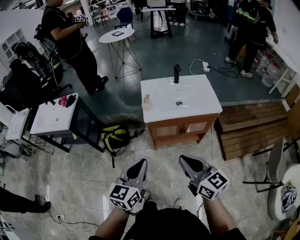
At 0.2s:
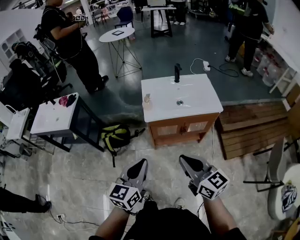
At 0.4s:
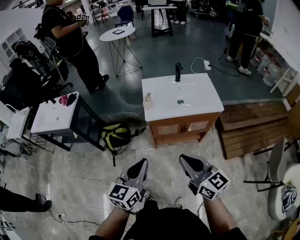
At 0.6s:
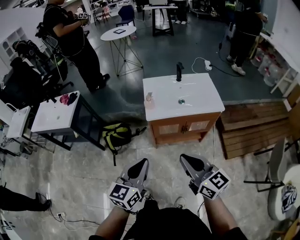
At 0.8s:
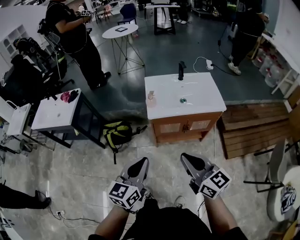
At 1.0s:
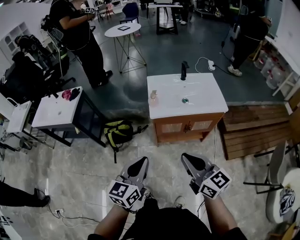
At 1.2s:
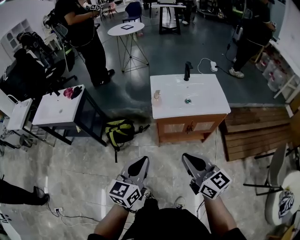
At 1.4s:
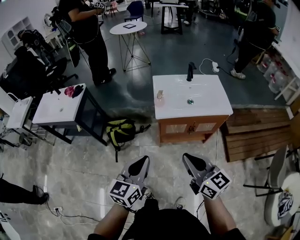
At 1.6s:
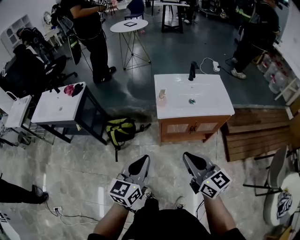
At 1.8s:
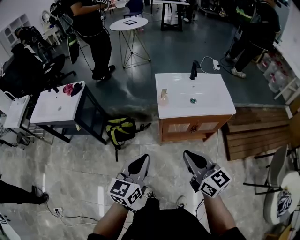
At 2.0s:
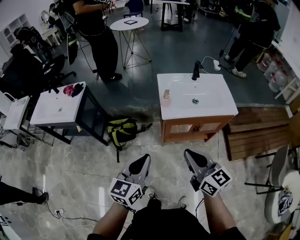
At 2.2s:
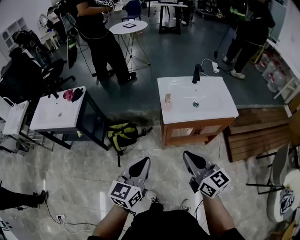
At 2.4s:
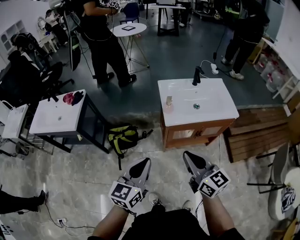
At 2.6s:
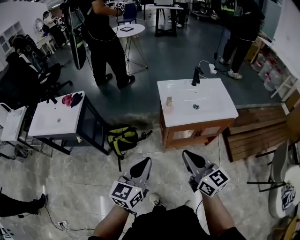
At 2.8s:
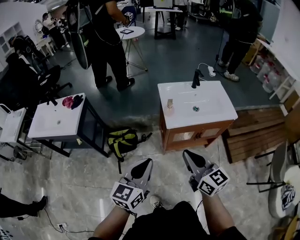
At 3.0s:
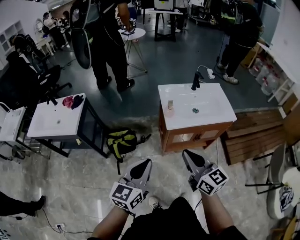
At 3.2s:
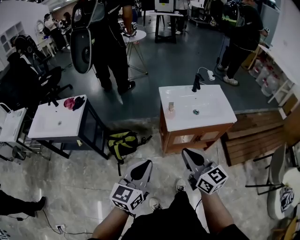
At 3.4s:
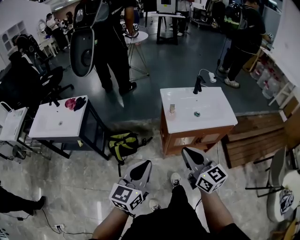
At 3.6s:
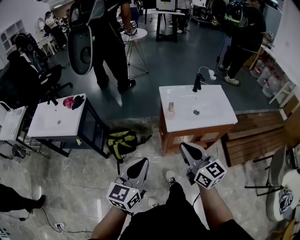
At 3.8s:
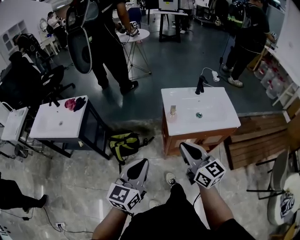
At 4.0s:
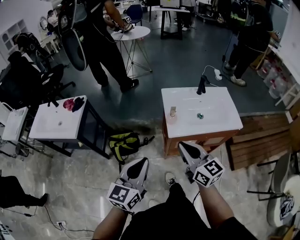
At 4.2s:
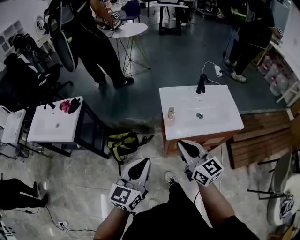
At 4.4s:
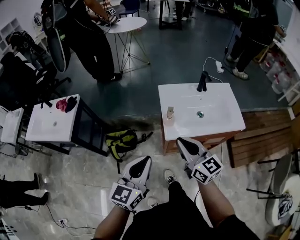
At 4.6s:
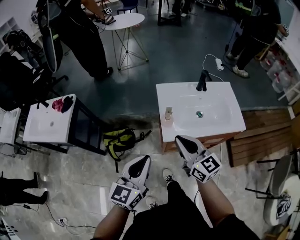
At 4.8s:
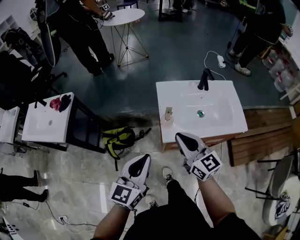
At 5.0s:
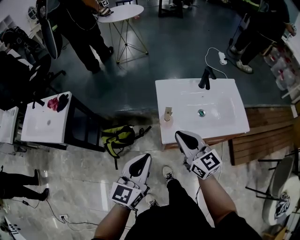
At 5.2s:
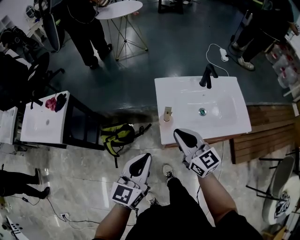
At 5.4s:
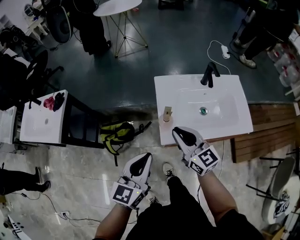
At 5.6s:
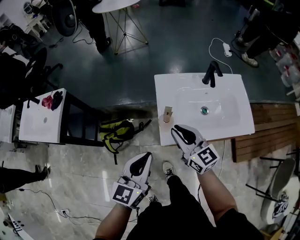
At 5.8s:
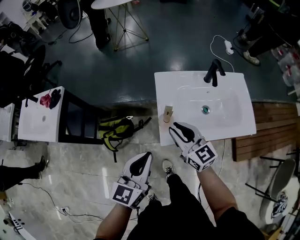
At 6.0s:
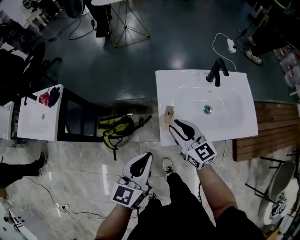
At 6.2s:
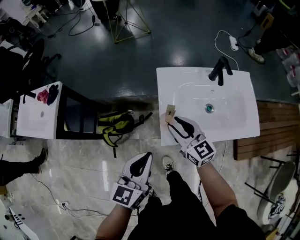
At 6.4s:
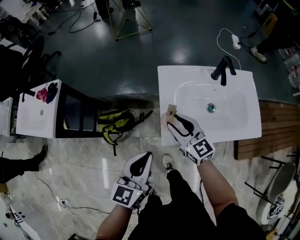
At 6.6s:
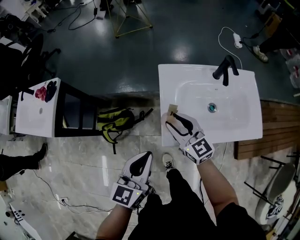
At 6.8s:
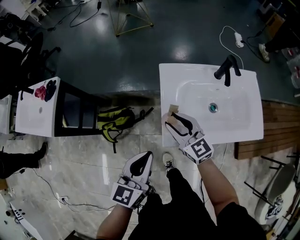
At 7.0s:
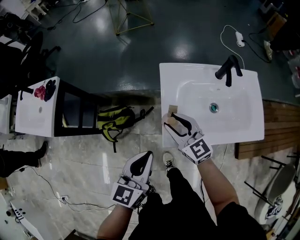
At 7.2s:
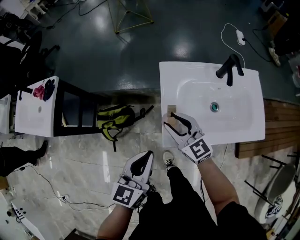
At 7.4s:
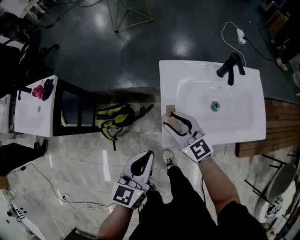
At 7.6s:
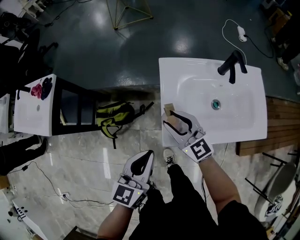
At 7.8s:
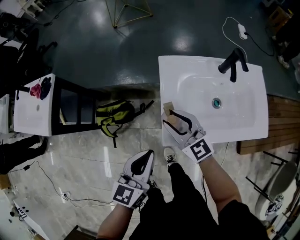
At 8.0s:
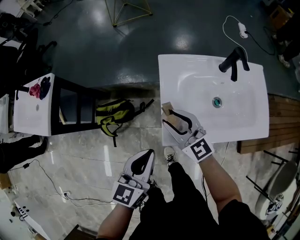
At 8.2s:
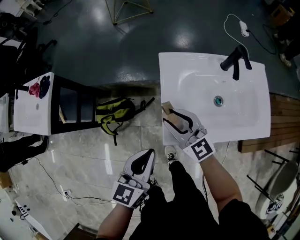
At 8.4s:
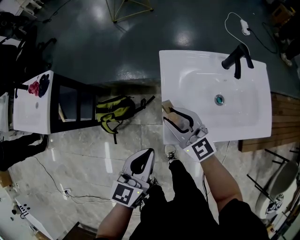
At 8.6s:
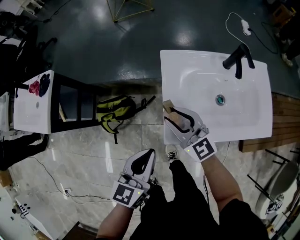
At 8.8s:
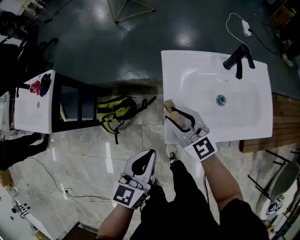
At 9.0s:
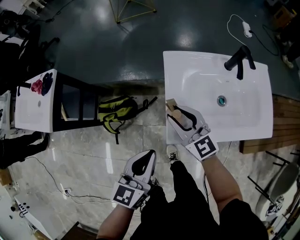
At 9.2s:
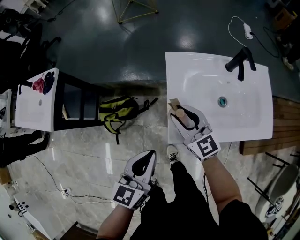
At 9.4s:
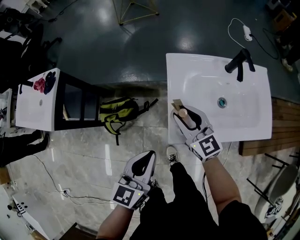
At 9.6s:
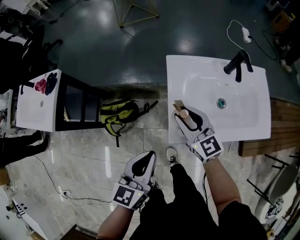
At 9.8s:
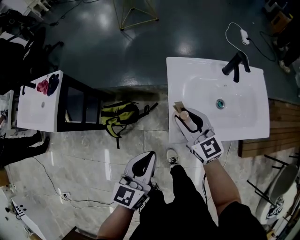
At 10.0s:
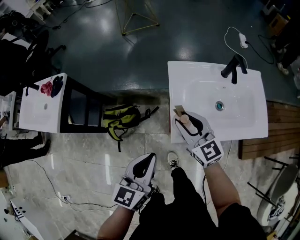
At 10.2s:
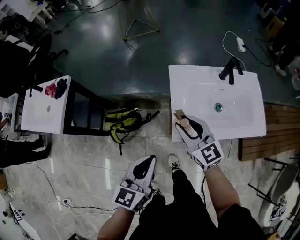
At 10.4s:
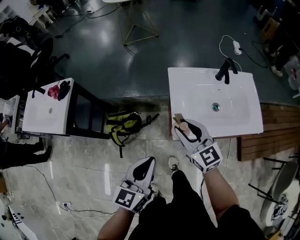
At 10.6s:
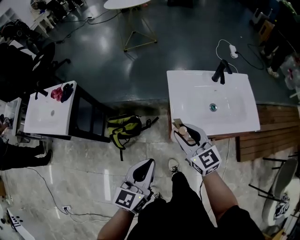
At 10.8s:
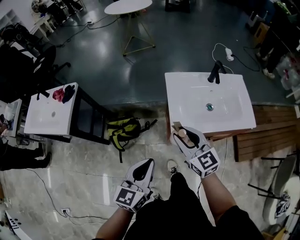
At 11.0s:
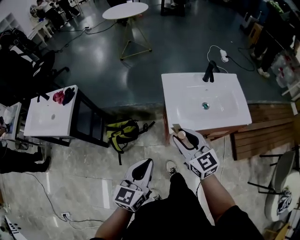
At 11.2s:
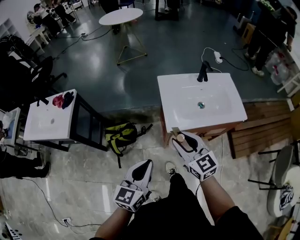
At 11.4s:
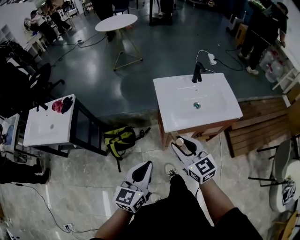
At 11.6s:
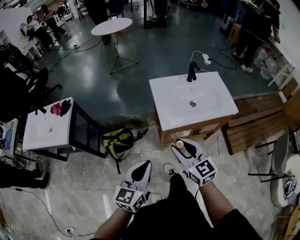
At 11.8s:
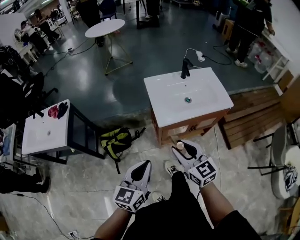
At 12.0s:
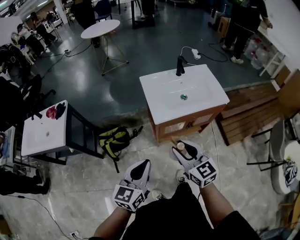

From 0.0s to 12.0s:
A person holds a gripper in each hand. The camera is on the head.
From 0.0s to 1.6s: Both grippers move to the left, approximately 5 cm.
From 1.6s to 3.0s: The right gripper heads to the left and forward, covering roughly 10 cm. The left gripper heads to the left, covering roughly 10 cm.
From 3.0s to 4.4s: Both grippers travel together forward, roughly 15 cm.
From 4.4s to 6.0s: The two grippers go about 15 cm forward and downward. The right gripper opens up.
From 6.0s to 7.6s: The right gripper shifts by roughly 5 cm, while the left gripper changes place by some 5 cm.
From 7.6s to 9.0s: The grippers move only a little.
From 9.0s to 10.4s: The two grippers go roughly 10 cm upward and backward.
From 10.4s to 12.0s: The left gripper travels backward by approximately 15 cm. The right gripper heads backward, covering some 25 cm.

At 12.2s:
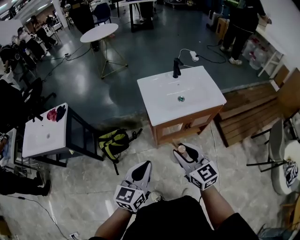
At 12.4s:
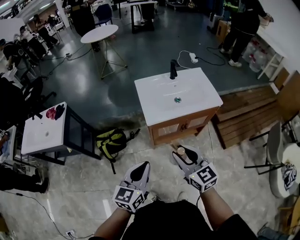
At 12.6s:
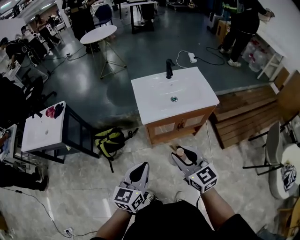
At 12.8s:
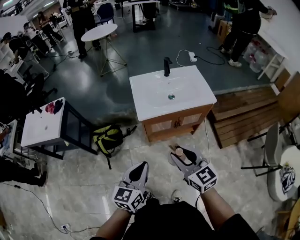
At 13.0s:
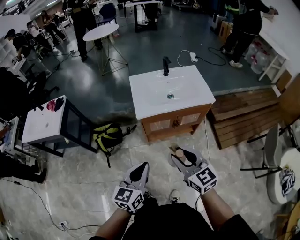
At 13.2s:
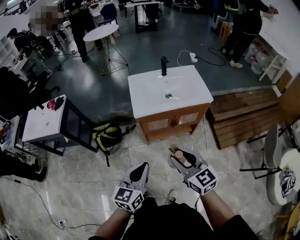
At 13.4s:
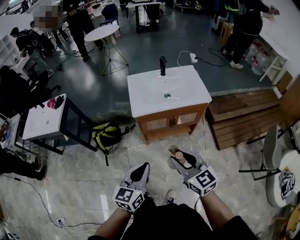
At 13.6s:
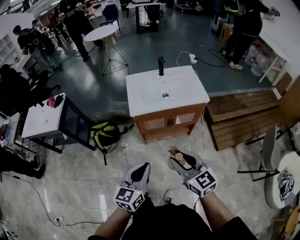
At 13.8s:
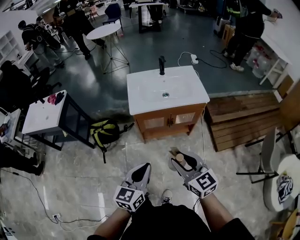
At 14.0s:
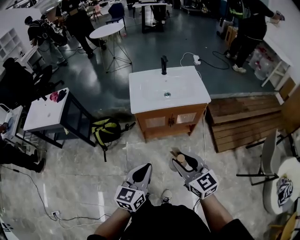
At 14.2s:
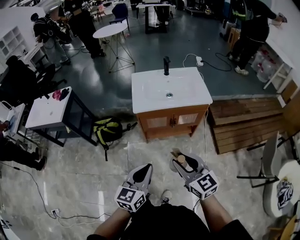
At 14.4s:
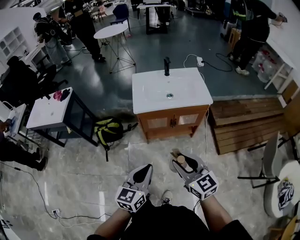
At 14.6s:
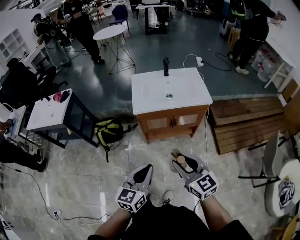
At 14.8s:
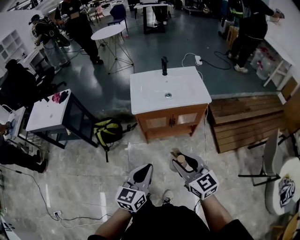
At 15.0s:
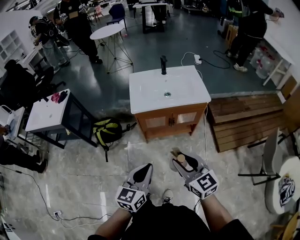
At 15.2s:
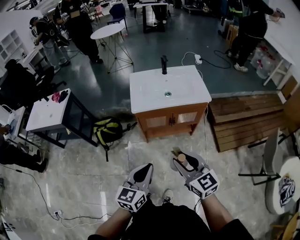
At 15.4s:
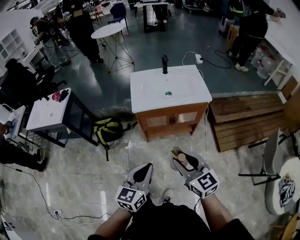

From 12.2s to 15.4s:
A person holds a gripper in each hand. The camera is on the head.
From 12.2s to 13.8s: The two grippers go about 20 cm to the right and backward.
From 13.8s to 15.4s: There are only small adjustments of the grippers.

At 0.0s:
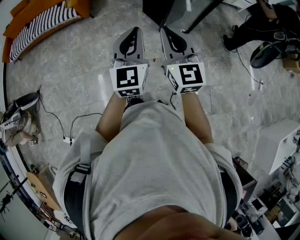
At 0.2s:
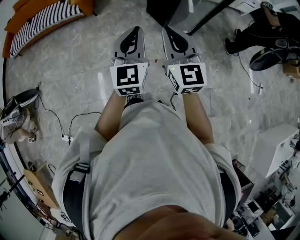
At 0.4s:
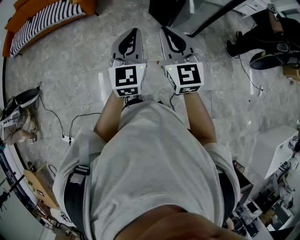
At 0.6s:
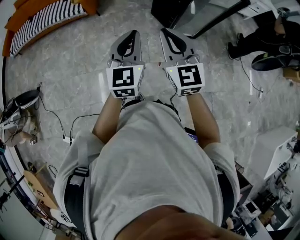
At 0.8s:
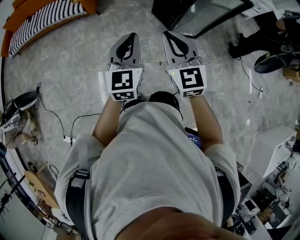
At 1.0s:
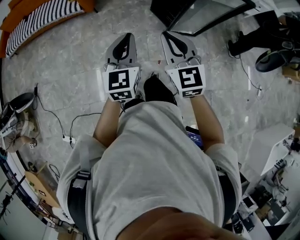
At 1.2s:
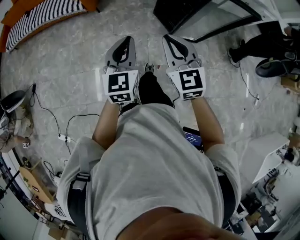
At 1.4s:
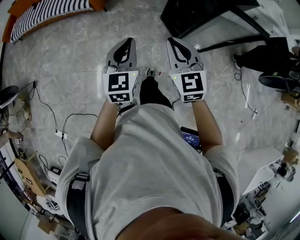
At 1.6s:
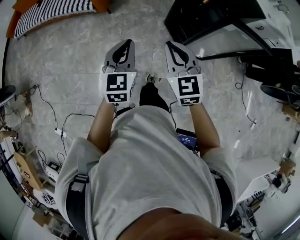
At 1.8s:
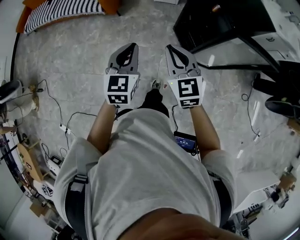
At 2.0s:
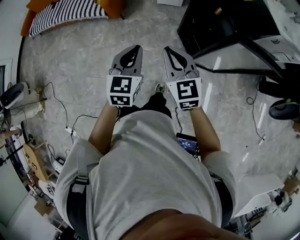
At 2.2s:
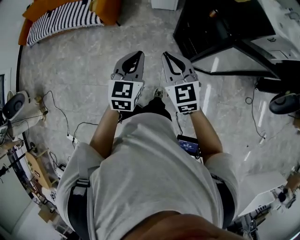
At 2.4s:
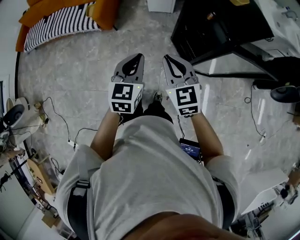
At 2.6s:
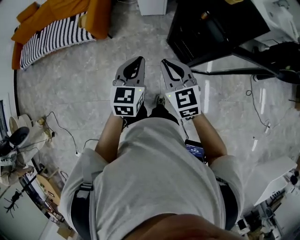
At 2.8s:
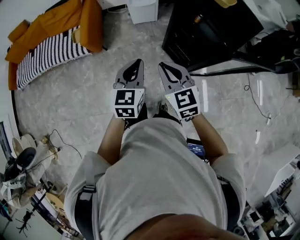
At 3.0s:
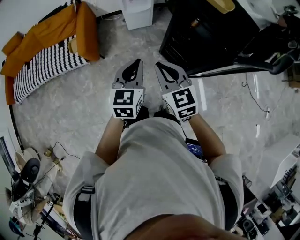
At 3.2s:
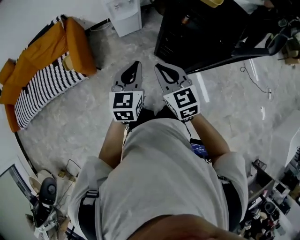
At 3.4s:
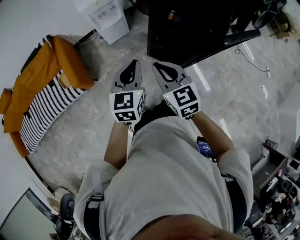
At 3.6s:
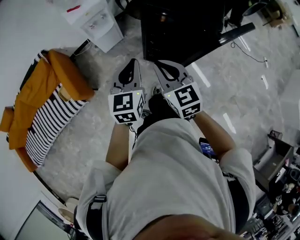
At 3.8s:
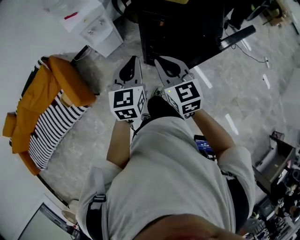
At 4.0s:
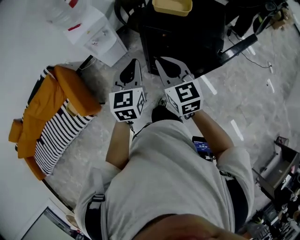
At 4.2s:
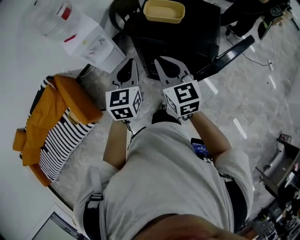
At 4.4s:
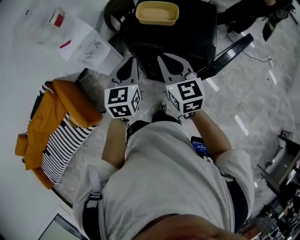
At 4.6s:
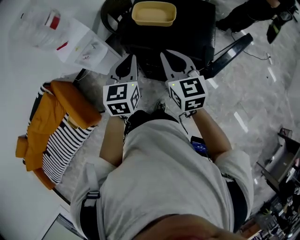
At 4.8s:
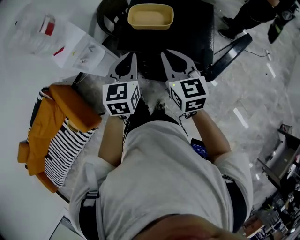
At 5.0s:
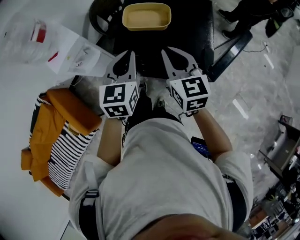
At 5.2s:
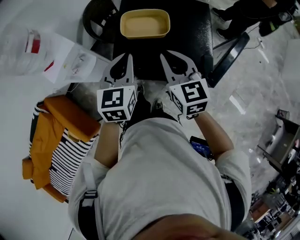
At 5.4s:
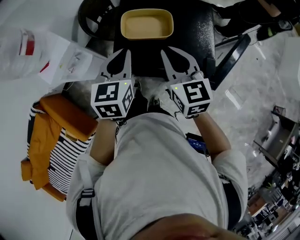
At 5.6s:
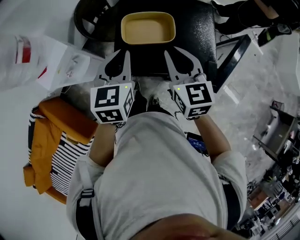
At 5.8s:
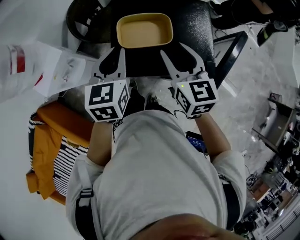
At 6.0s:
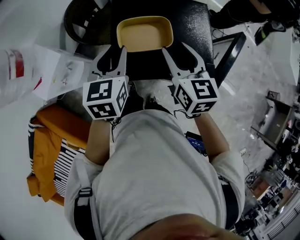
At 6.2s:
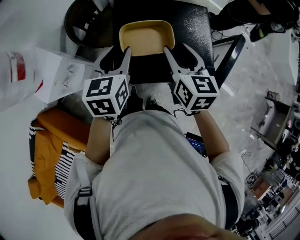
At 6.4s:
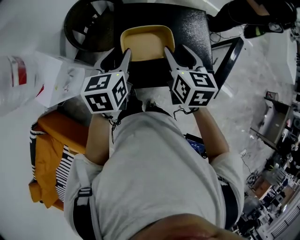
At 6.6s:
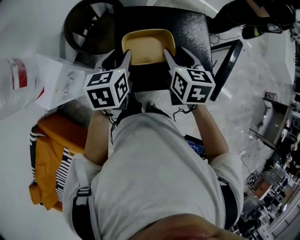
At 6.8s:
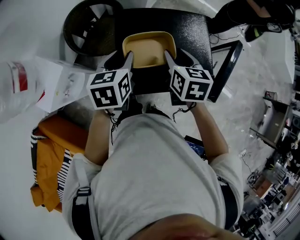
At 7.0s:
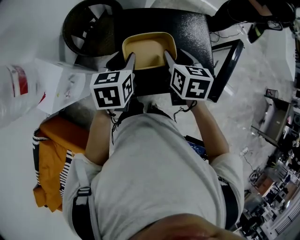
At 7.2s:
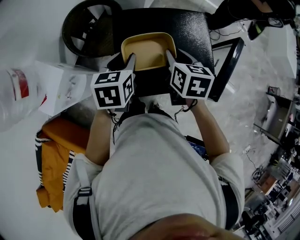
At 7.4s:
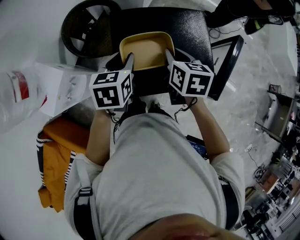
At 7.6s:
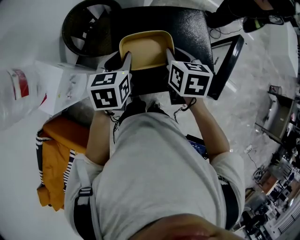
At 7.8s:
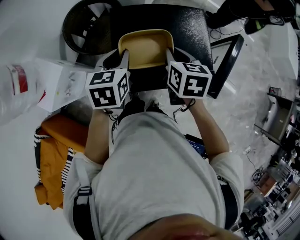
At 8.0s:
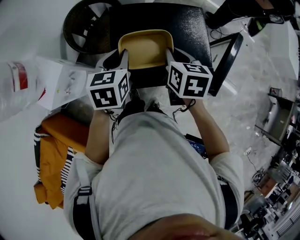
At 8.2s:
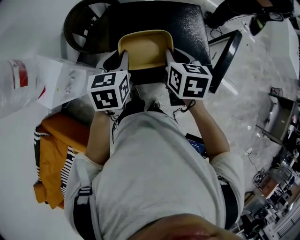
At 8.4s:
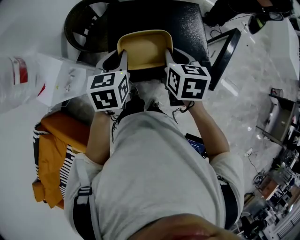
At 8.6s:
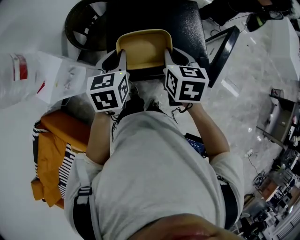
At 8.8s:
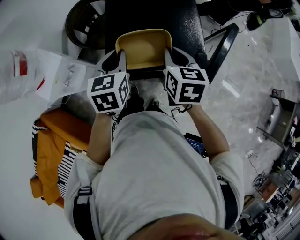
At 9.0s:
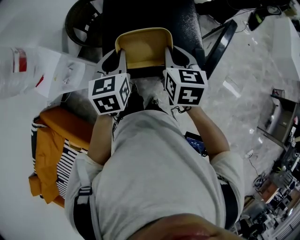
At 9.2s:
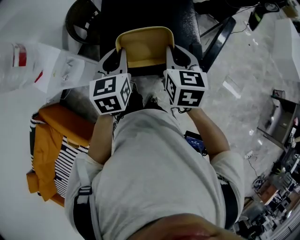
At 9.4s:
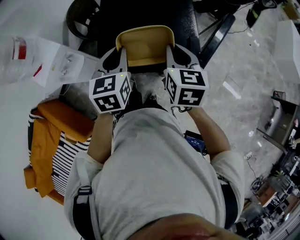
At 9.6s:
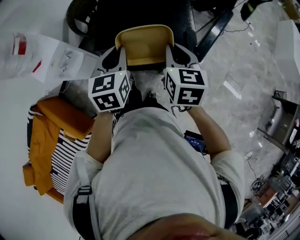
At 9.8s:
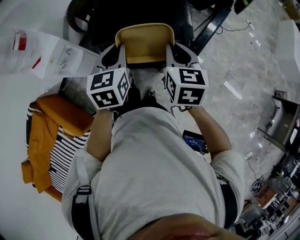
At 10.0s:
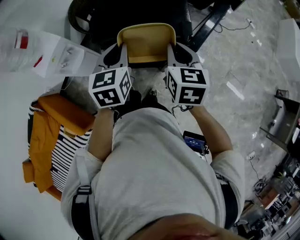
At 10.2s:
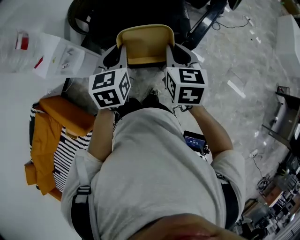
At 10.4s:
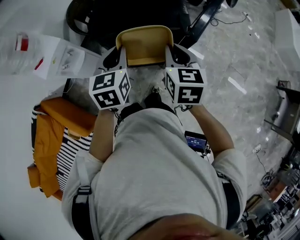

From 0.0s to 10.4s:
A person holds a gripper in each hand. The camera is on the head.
From 0.0s to 1.4s: The left gripper travels forward, to the left and downward by some 25 cm, while the right gripper is displaced forward by approximately 25 cm, and rotates about 20 degrees.
From 1.4s to 3.0s: The two grippers go some 35 cm forward. The left gripper changes its angle by approximately 20 degrees.
From 3.0s to 4.4s: The left gripper shifts by approximately 30 cm, and turns by some 20 degrees; the right gripper ends up approximately 30 cm from where it was, and turns by roughly 40 degrees.
From 4.4s to 6.0s: Both grippers move forward, roughly 20 cm. The right gripper turns by about 30 degrees, and opens its fingers. Meanwhile the left gripper opens up.
From 6.0s to 7.4s: The right gripper heads forward and downward, covering some 5 cm, swivels some 30 degrees, and closes up. The left gripper travels forward by about 5 cm.
From 7.4s to 9.0s: The left gripper moves backward, approximately 10 cm, and closes its fingers. The right gripper heads backward and to the right, covering some 10 cm.
From 9.0s to 10.4s: The grippers both shift backward by some 15 cm.
